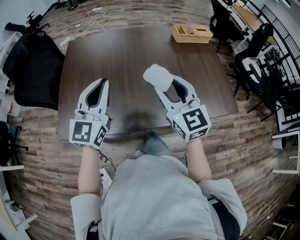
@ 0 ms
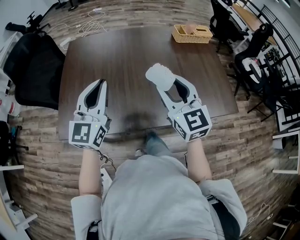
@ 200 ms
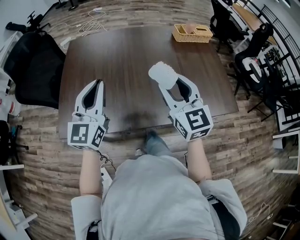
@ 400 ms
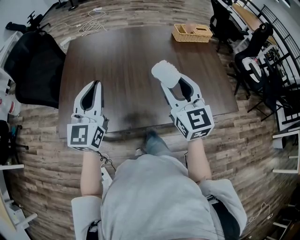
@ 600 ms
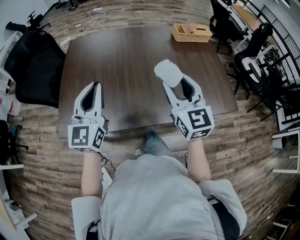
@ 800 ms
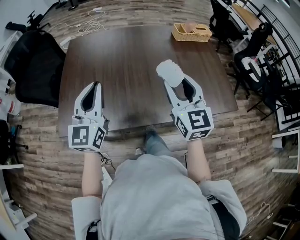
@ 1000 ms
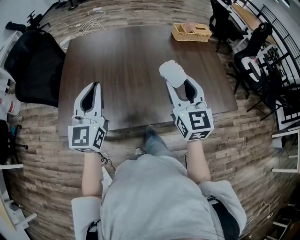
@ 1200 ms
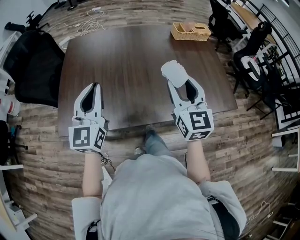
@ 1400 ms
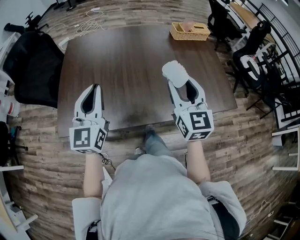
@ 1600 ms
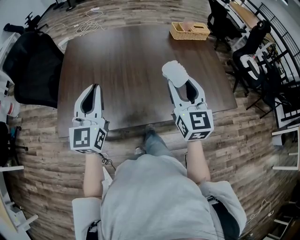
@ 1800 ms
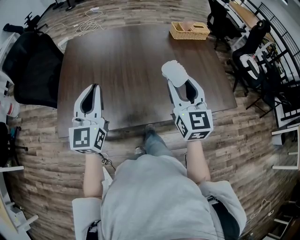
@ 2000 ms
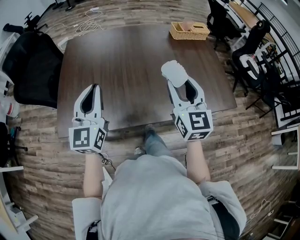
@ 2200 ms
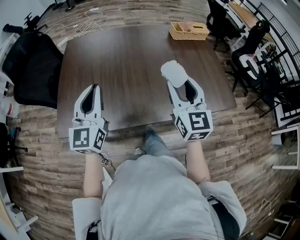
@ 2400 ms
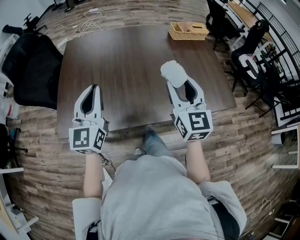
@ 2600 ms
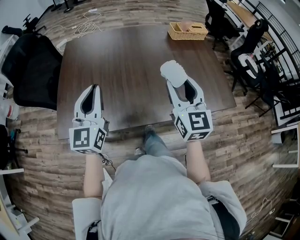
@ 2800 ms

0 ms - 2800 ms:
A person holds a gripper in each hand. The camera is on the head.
0 ms - 1400 ms: The grippers make only small movements.
1400 ms - 2800 ms: Neither gripper changes place.

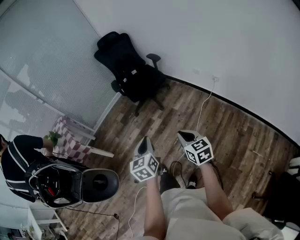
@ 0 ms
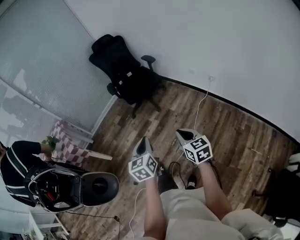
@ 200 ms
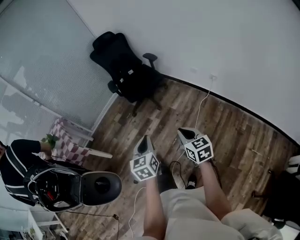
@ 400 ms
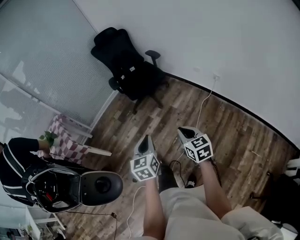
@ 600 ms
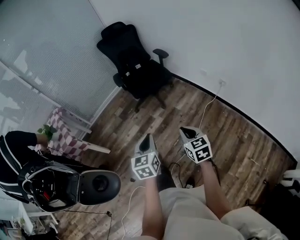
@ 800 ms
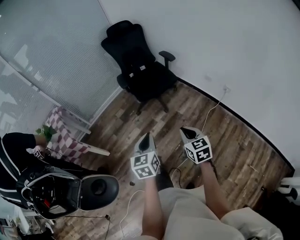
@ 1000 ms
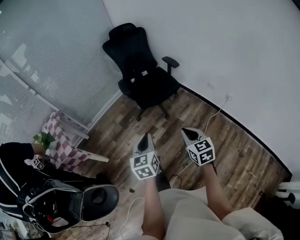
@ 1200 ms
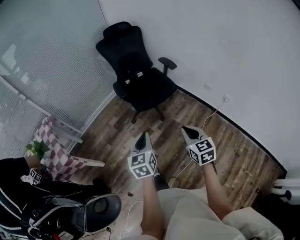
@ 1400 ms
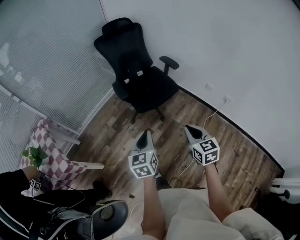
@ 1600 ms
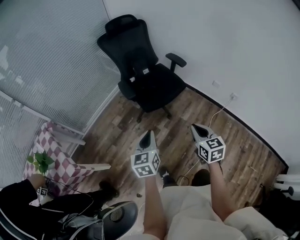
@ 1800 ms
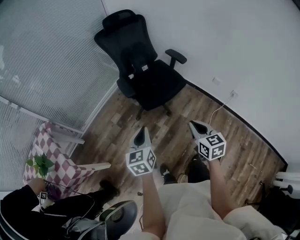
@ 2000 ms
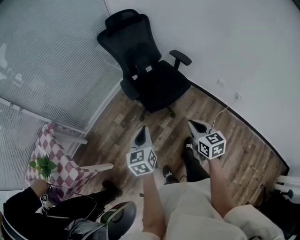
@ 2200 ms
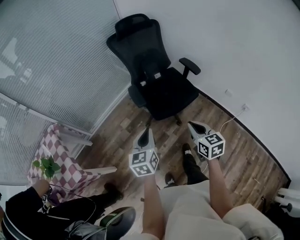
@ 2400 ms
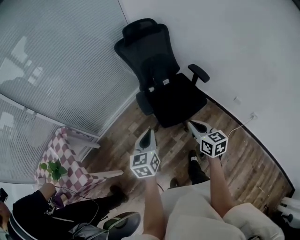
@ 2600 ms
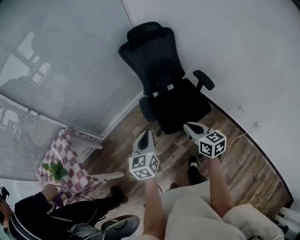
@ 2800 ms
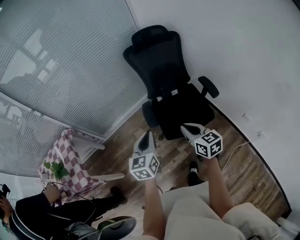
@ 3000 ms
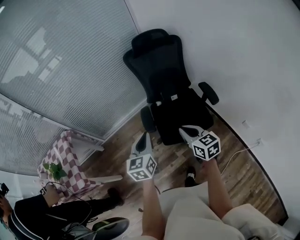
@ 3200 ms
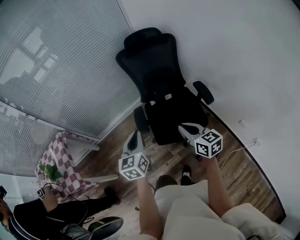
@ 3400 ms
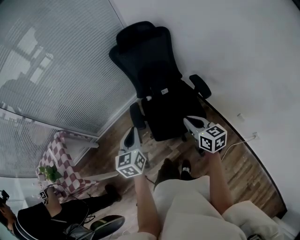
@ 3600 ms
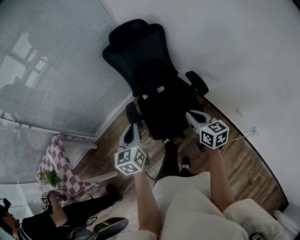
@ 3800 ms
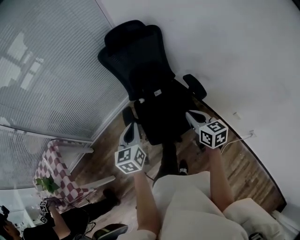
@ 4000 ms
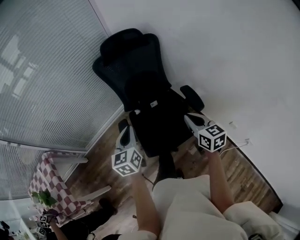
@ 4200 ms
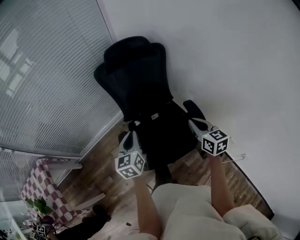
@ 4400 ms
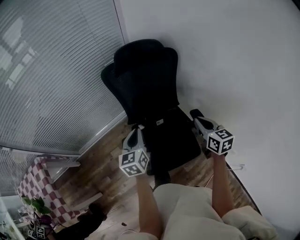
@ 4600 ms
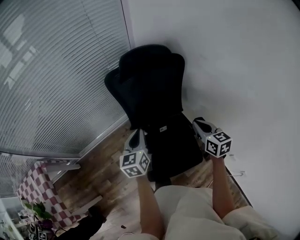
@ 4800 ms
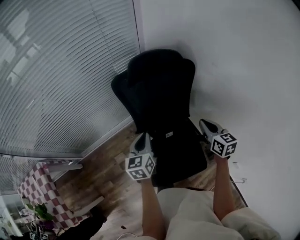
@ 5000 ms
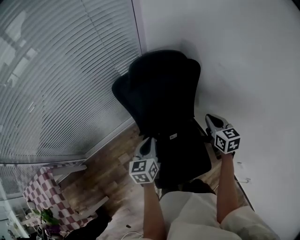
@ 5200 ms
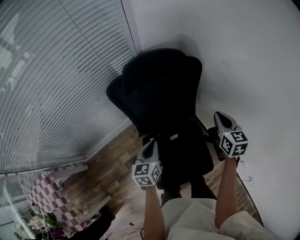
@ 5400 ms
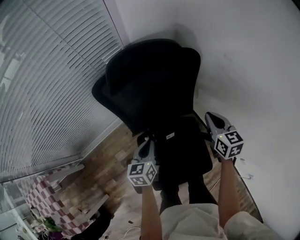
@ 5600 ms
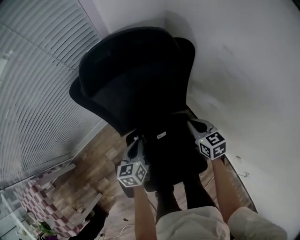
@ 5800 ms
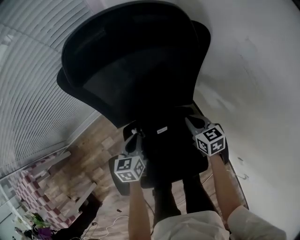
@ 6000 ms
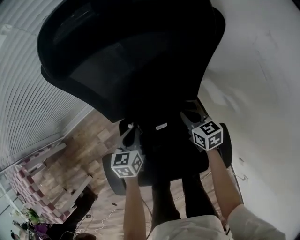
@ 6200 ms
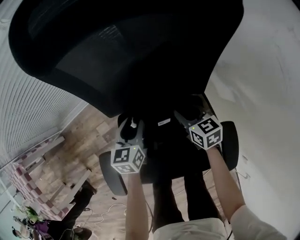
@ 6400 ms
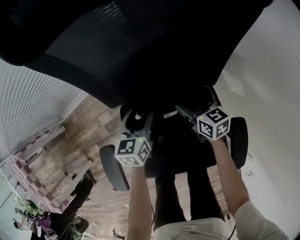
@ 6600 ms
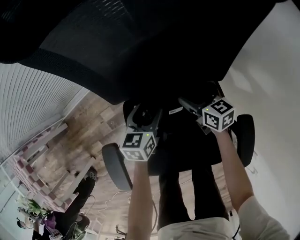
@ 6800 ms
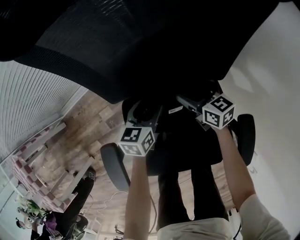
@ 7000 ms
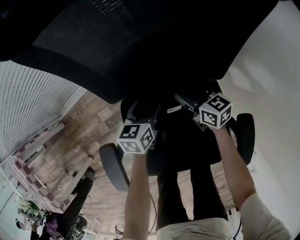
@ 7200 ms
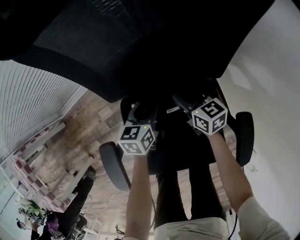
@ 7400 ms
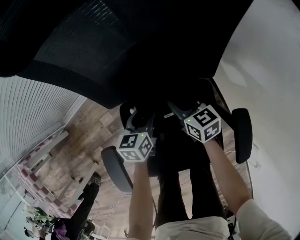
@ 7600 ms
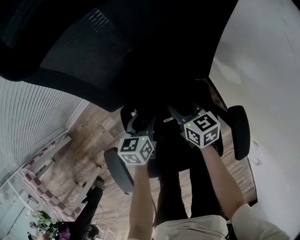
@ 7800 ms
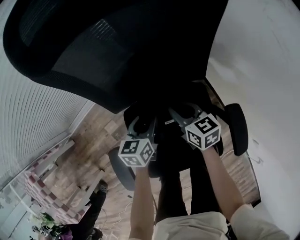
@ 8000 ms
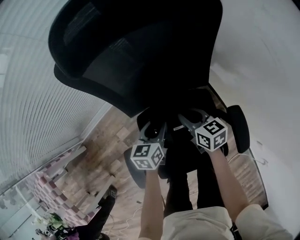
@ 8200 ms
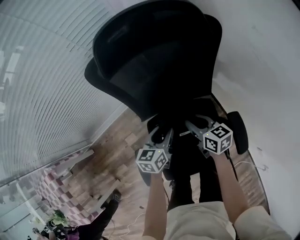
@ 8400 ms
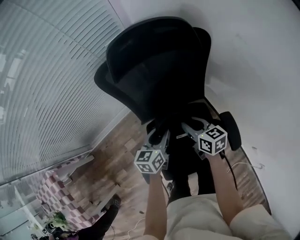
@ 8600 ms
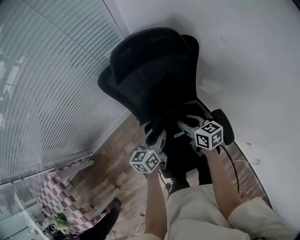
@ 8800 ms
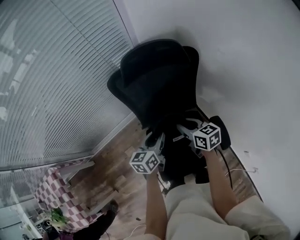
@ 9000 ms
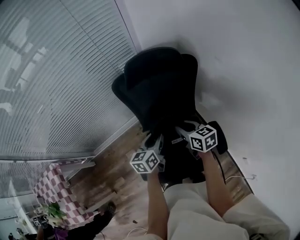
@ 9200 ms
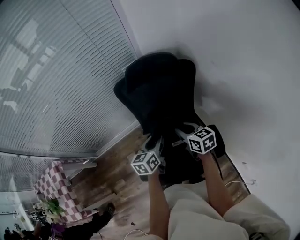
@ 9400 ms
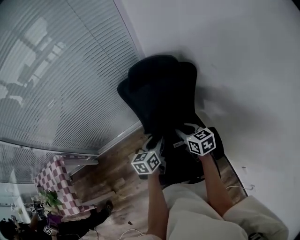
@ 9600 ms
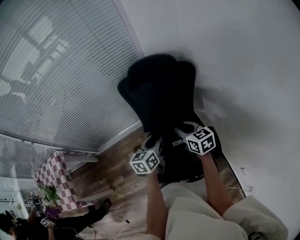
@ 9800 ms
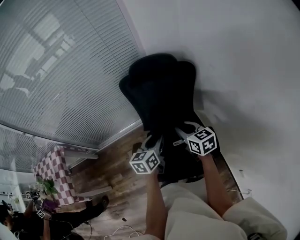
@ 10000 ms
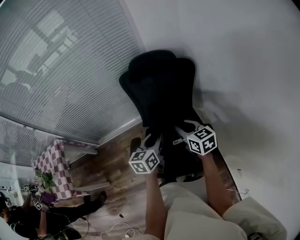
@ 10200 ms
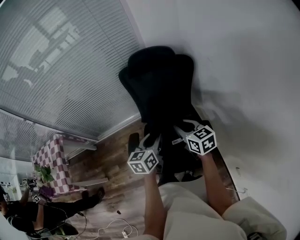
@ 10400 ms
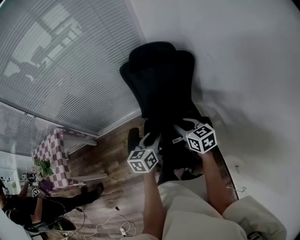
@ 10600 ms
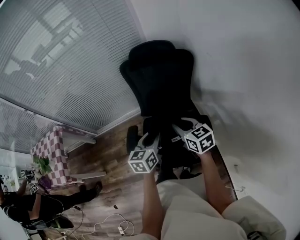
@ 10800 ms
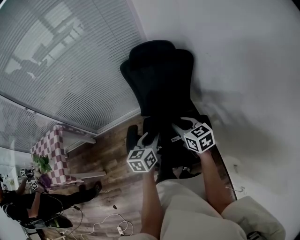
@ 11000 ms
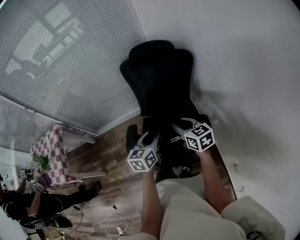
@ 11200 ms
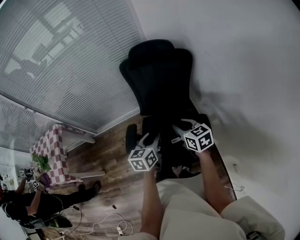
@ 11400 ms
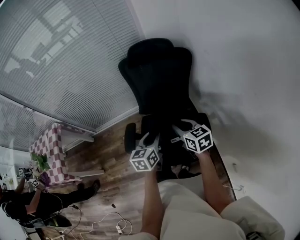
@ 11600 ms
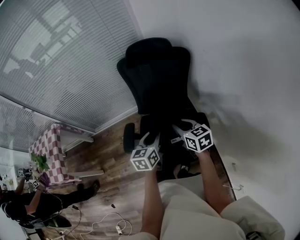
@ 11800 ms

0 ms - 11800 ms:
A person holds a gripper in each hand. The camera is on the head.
0 ms - 1400 ms: The left gripper is displaced forward and to the left by approximately 30 cm; the right gripper shifts roughly 30 cm forward.
1400 ms - 3000 ms: The grippers both shift forward by roughly 35 cm. The right gripper swivels approximately 30 degrees.
3000 ms - 4400 ms: The left gripper goes about 30 cm forward. The right gripper goes roughly 30 cm forward and to the right.
4400 ms - 6000 ms: The grippers both shift downward and forward by about 40 cm. The left gripper changes its angle by some 20 degrees. The right gripper rotates some 20 degrees.
6000 ms - 7400 ms: The right gripper shifts about 20 cm downward and to the left, and opens its fingers. The left gripper is displaced downward by about 15 cm, and opens its fingers.
7400 ms - 8800 ms: Both grippers travel together upward, approximately 30 cm. The left gripper rotates approximately 20 degrees.
8800 ms - 10400 ms: The left gripper is displaced backward and upward by approximately 25 cm; the right gripper shifts roughly 20 cm upward, backward and to the right, and turns by about 20 degrees.
10400 ms - 11800 ms: The two grippers go about 5 cm backward.

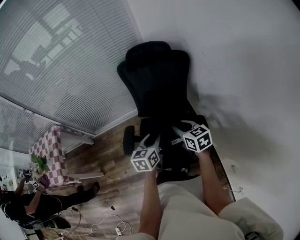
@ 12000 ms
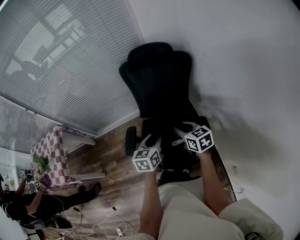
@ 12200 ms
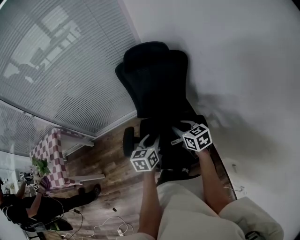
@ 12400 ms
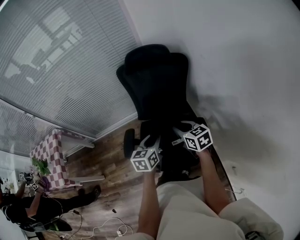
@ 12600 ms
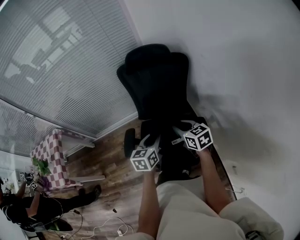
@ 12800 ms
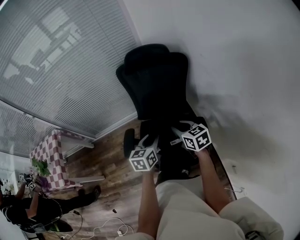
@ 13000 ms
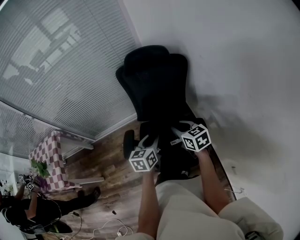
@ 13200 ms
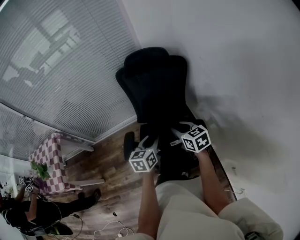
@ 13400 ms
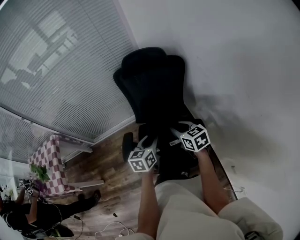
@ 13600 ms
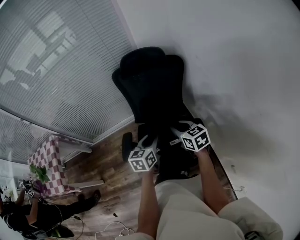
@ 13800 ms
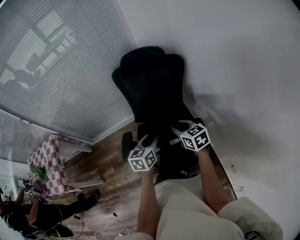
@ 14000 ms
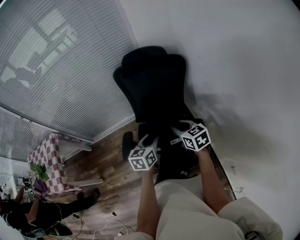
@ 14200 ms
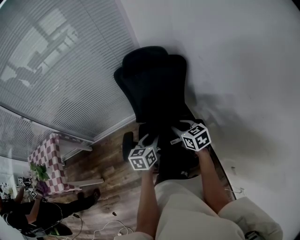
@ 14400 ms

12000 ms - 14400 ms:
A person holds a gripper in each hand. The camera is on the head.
12000 ms - 13200 ms: Both grippers stay put.
13200 ms - 14400 ms: There are only small adjustments of the grippers.

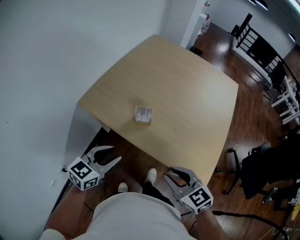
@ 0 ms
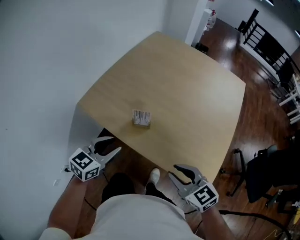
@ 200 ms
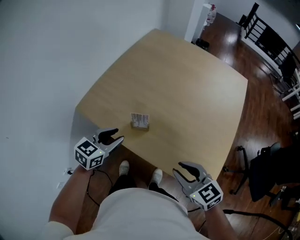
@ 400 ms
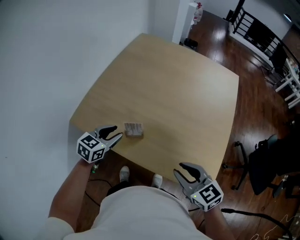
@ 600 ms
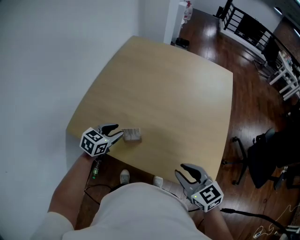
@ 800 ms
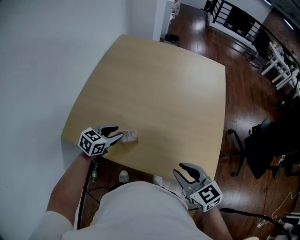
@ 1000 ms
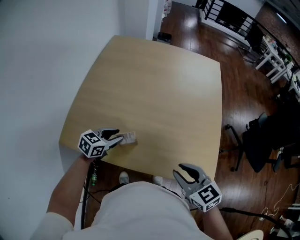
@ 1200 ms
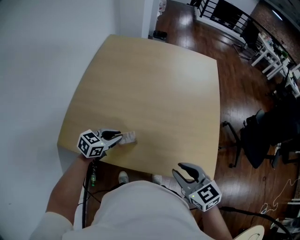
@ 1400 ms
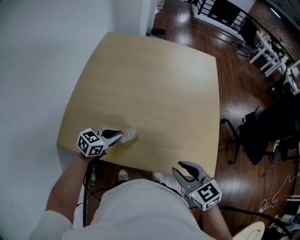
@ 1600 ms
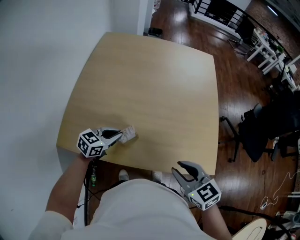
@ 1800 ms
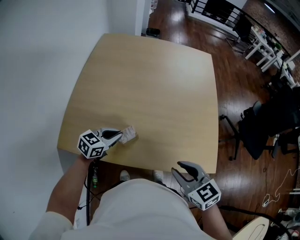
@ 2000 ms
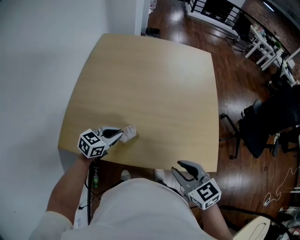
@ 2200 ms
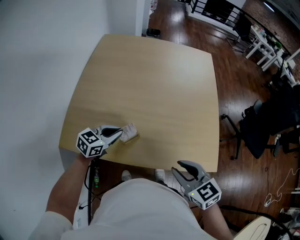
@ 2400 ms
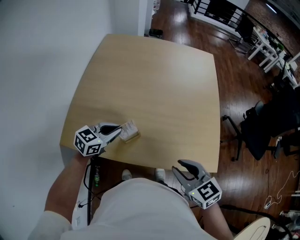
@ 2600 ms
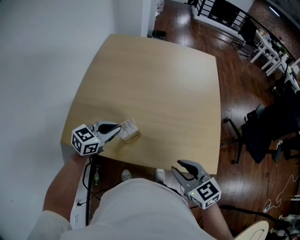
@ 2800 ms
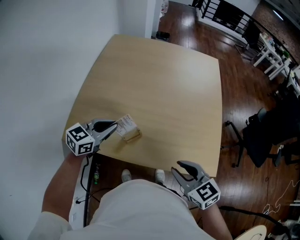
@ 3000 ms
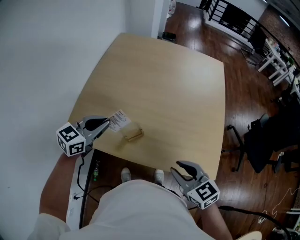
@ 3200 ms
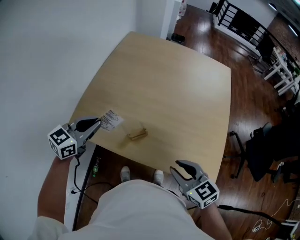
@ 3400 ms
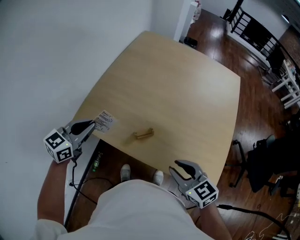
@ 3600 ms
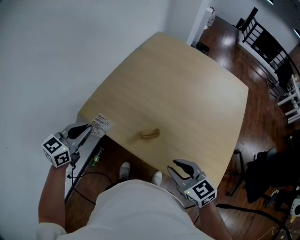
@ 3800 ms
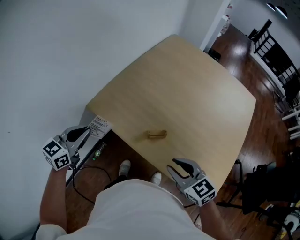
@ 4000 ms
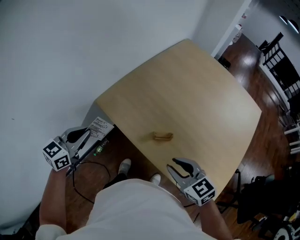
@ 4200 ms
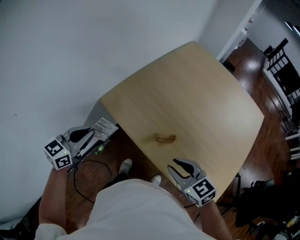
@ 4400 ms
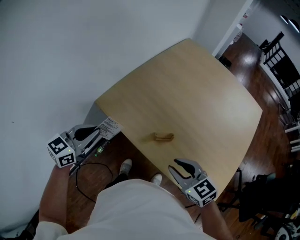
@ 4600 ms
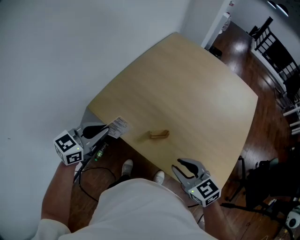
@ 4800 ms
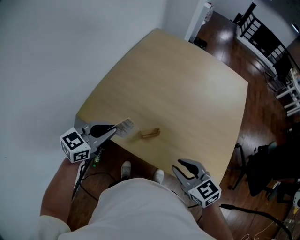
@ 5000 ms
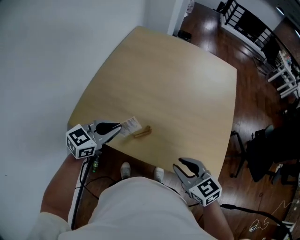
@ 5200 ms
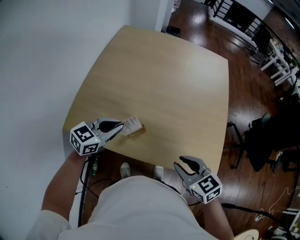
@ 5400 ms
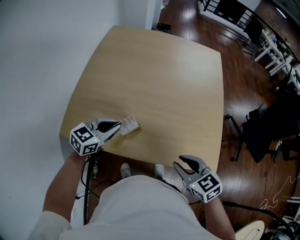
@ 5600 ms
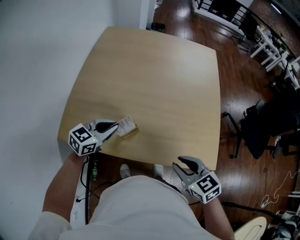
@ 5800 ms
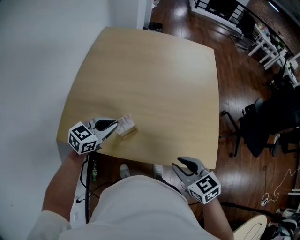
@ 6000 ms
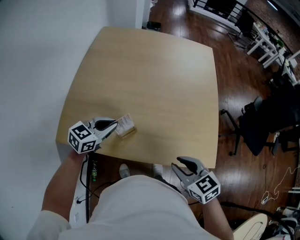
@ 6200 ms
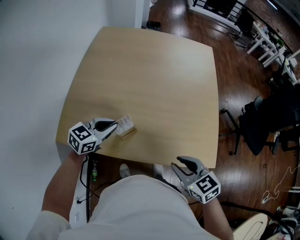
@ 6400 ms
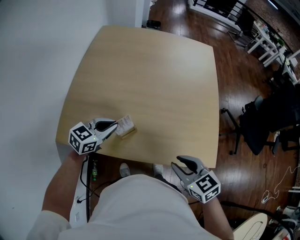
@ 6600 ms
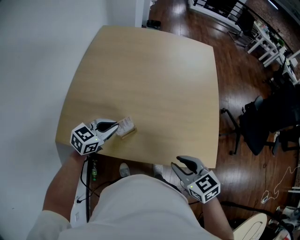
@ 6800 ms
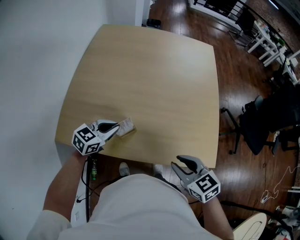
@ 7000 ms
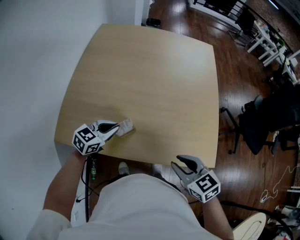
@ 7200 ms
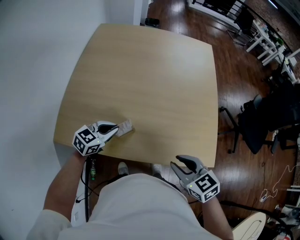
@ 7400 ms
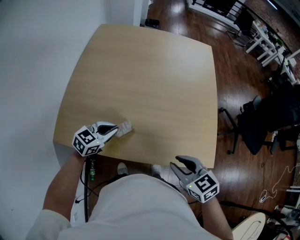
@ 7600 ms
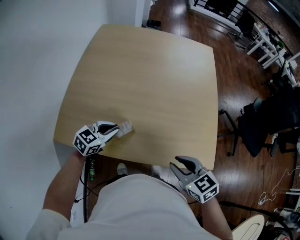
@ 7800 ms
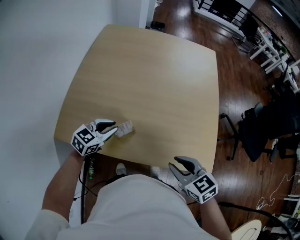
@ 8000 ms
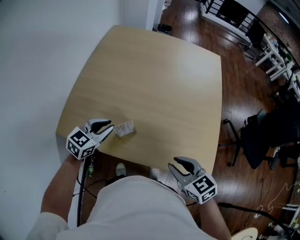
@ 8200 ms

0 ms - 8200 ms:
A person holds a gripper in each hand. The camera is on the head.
0 ms - 1600 ms: The right gripper shifts by approximately 10 cm, and rotates approximately 20 degrees. The left gripper shifts by roughly 25 cm, swivels some 30 degrees, and closes.
1600 ms - 3200 ms: The left gripper goes about 15 cm upward and to the left.
5000 ms - 6600 ms: The right gripper moves to the right, about 5 cm, and rotates roughly 20 degrees; the left gripper is displaced forward, to the right and downward by some 15 cm, and turns by about 20 degrees.
6600 ms - 8200 ms: There are only small adjustments of the grippers.
